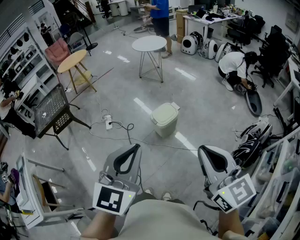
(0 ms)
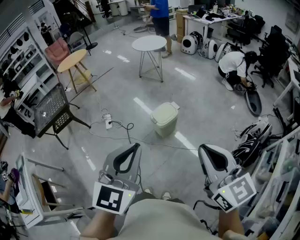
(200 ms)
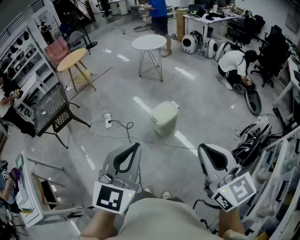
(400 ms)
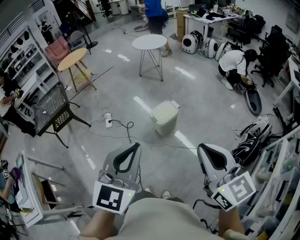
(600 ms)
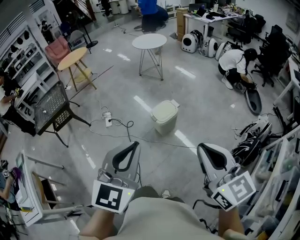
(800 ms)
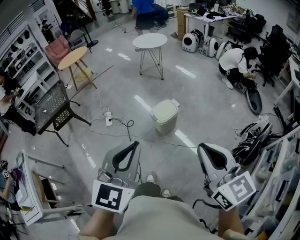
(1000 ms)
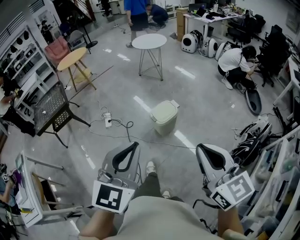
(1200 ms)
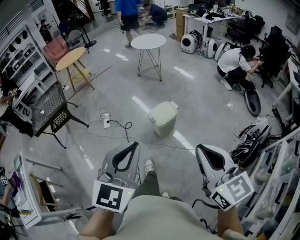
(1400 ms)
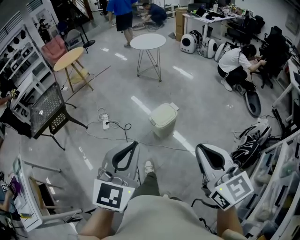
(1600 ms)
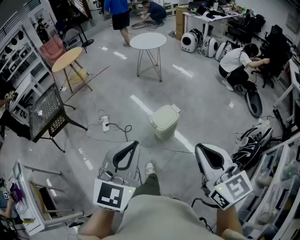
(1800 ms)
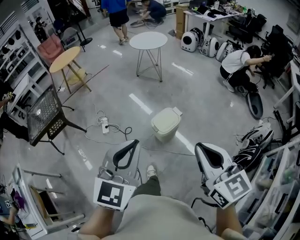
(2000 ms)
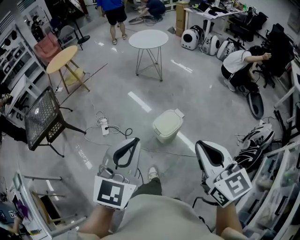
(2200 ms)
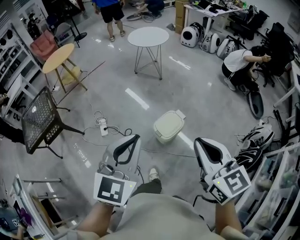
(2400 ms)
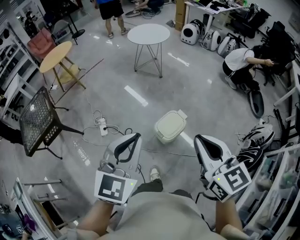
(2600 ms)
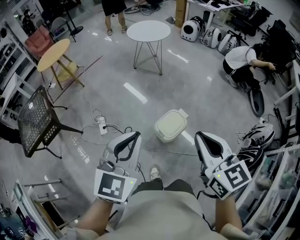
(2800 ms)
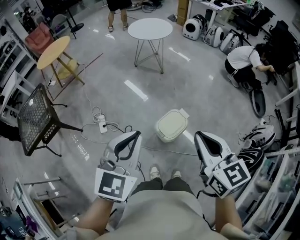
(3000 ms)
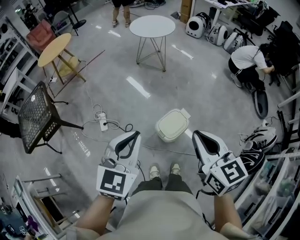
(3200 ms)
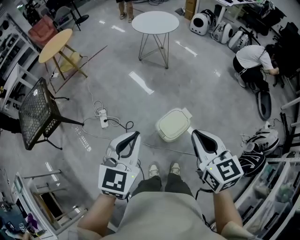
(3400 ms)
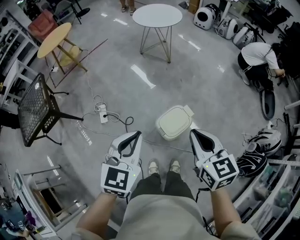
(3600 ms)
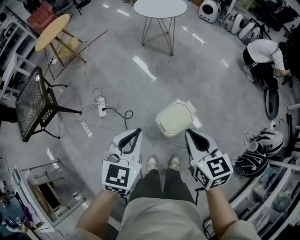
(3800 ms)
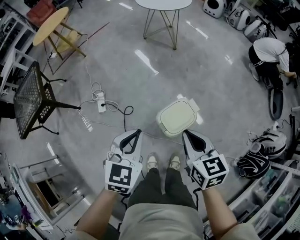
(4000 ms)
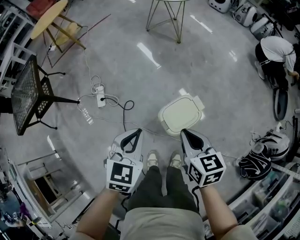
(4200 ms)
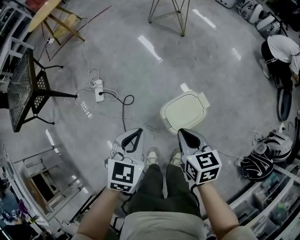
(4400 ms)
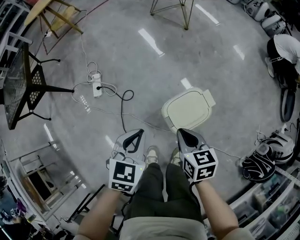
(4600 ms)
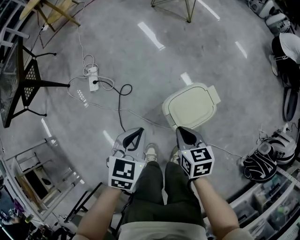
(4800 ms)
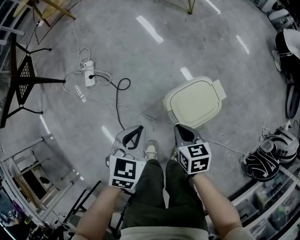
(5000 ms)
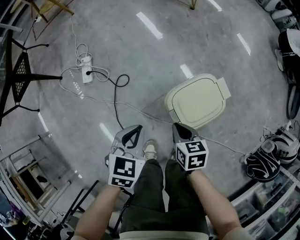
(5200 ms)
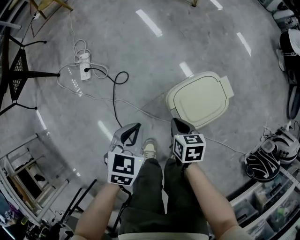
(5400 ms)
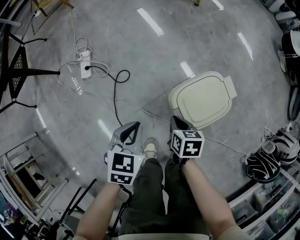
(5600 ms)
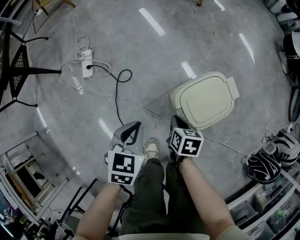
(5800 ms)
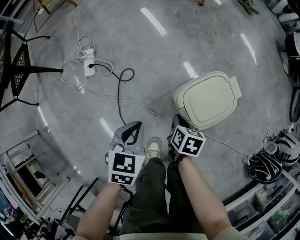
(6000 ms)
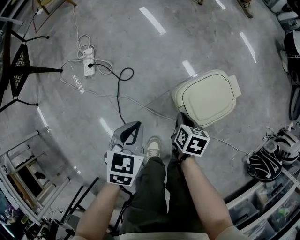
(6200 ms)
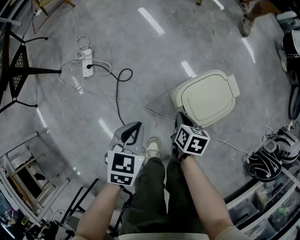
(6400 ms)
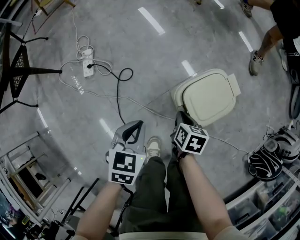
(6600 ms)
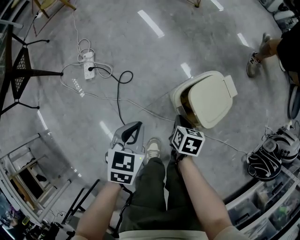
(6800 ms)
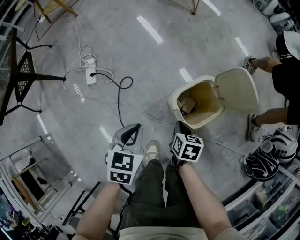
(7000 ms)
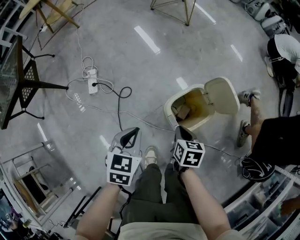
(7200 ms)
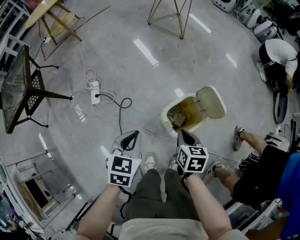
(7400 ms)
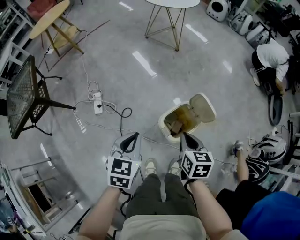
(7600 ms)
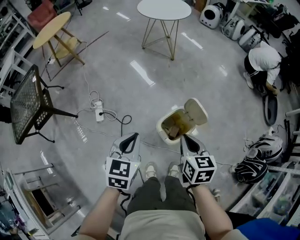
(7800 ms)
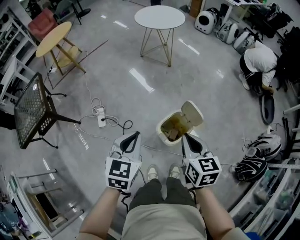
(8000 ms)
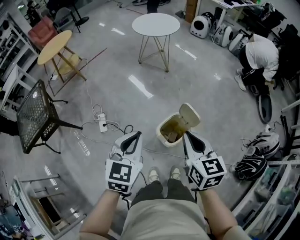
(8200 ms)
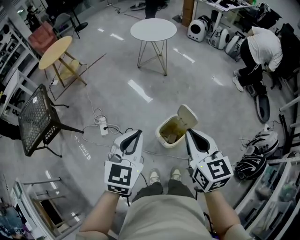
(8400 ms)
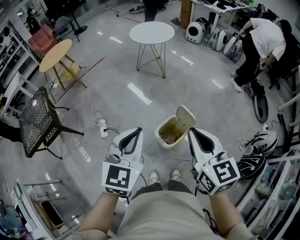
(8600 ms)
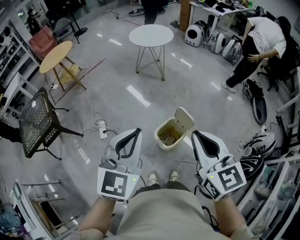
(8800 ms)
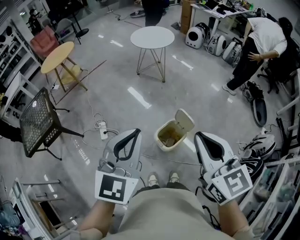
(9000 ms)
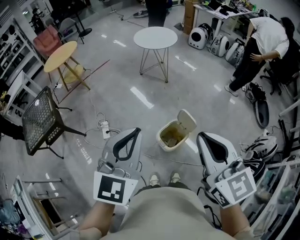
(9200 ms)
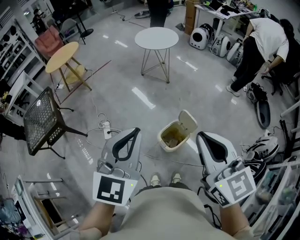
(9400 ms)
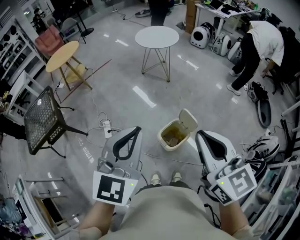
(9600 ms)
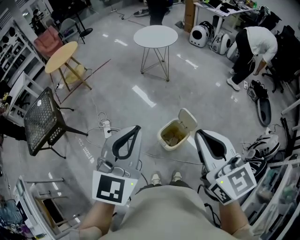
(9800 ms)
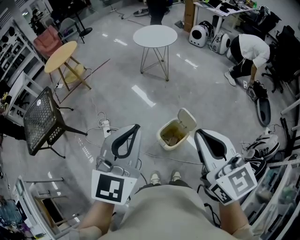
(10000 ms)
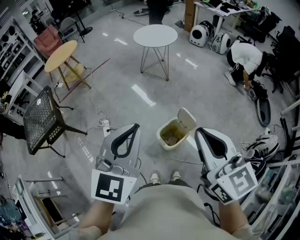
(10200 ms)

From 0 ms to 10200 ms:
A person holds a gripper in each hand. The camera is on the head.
From 0 ms to 1400 ms: There are only small adjustments of the grippers.
From 1400 ms to 3000 ms: Both grippers move forward, roughly 35 cm.
From 3000 ms to 4400 ms: Both grippers travel together downward, about 35 cm. The right gripper rotates approximately 30 degrees. Meanwhile the left gripper turns by approximately 20 degrees.
From 4400 ms to 5800 ms: The grippers both shift downward by some 30 cm. The right gripper turns by roughly 30 degrees.
From 5800 ms to 7200 ms: Both grippers travel together upward, about 10 cm.
From 7200 ms to 8800 ms: Both grippers travel together upward, roughly 60 cm. The left gripper points its fingers approximately 30 degrees further upward, while the right gripper tips its fingers upward by roughly 40 degrees.
From 8800 ms to 10200 ms: The right gripper is displaced upward by roughly 5 cm.

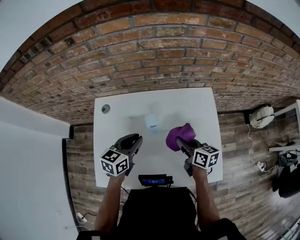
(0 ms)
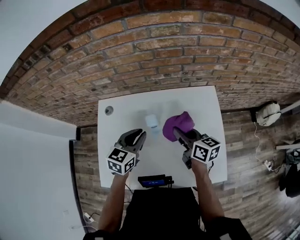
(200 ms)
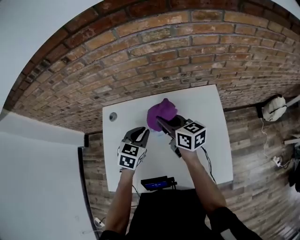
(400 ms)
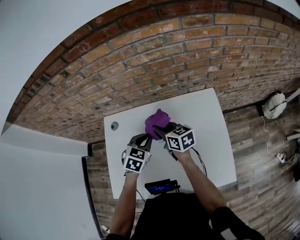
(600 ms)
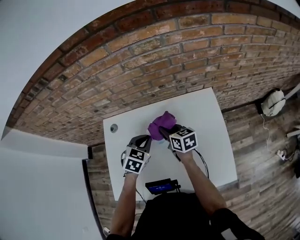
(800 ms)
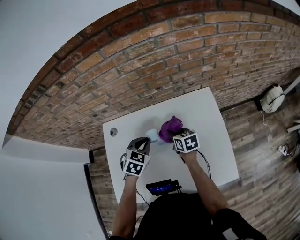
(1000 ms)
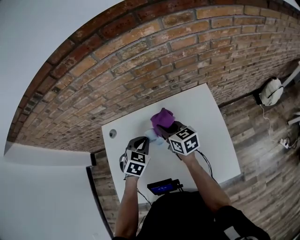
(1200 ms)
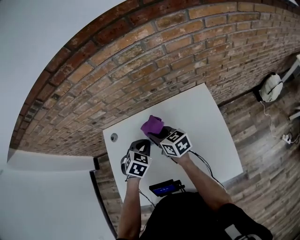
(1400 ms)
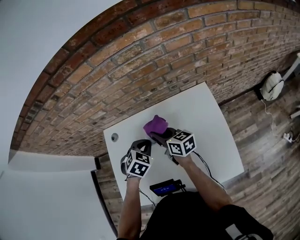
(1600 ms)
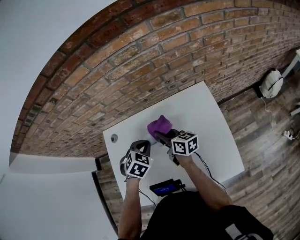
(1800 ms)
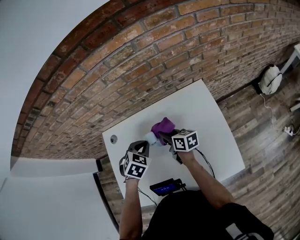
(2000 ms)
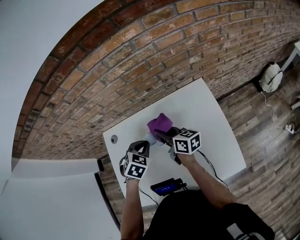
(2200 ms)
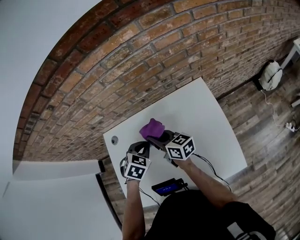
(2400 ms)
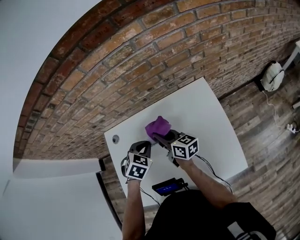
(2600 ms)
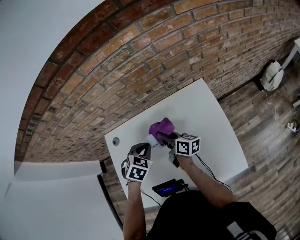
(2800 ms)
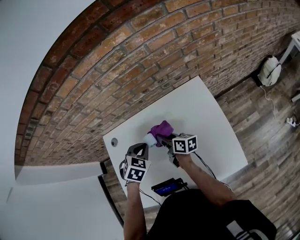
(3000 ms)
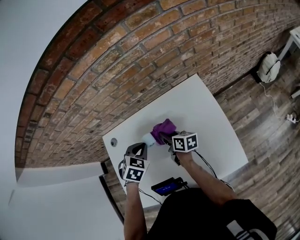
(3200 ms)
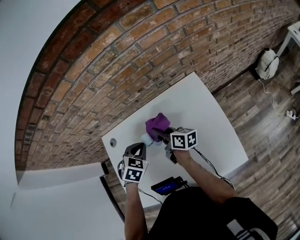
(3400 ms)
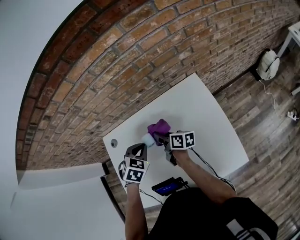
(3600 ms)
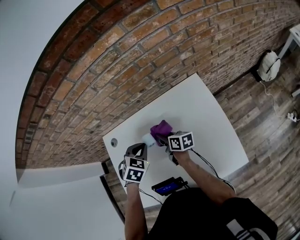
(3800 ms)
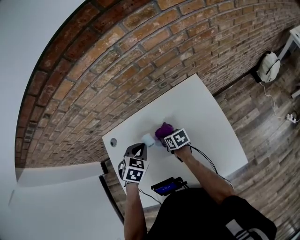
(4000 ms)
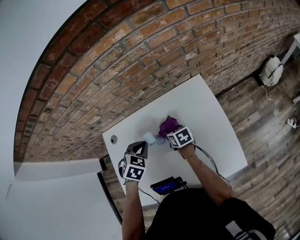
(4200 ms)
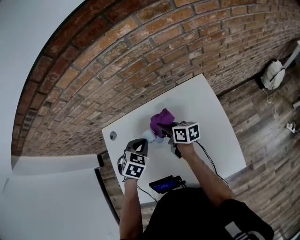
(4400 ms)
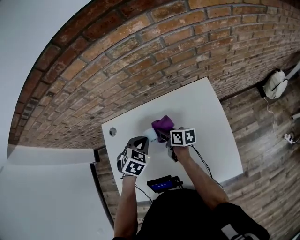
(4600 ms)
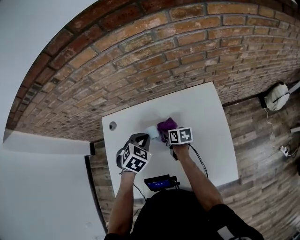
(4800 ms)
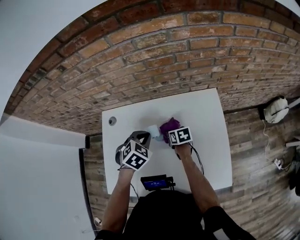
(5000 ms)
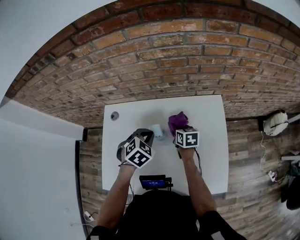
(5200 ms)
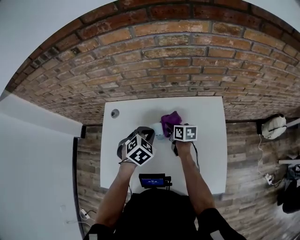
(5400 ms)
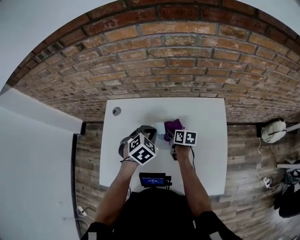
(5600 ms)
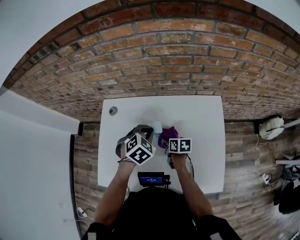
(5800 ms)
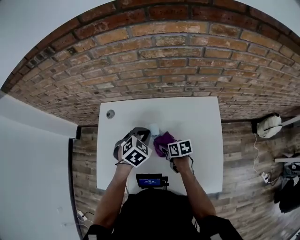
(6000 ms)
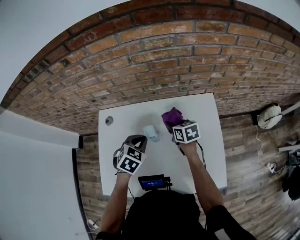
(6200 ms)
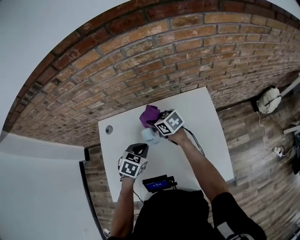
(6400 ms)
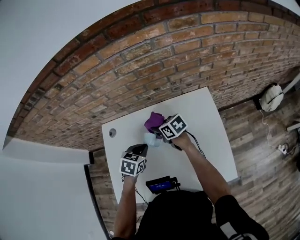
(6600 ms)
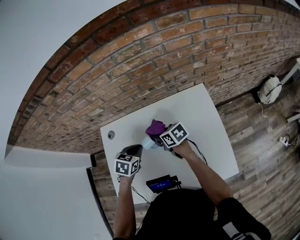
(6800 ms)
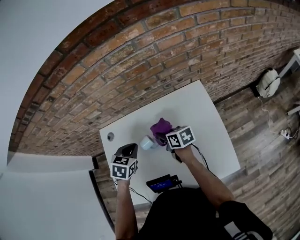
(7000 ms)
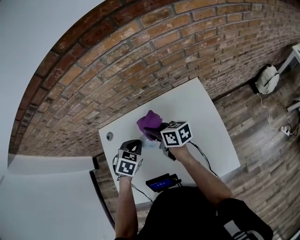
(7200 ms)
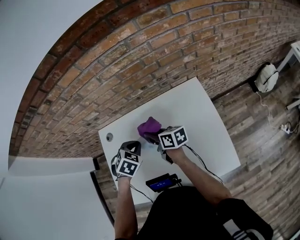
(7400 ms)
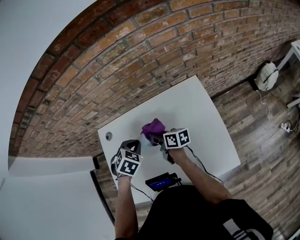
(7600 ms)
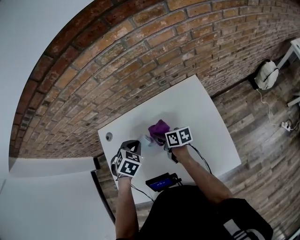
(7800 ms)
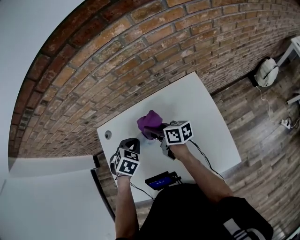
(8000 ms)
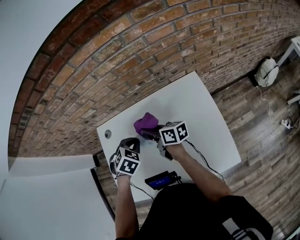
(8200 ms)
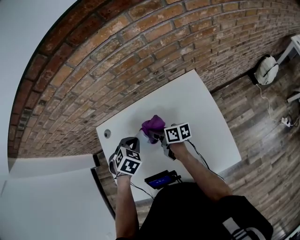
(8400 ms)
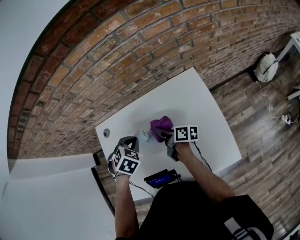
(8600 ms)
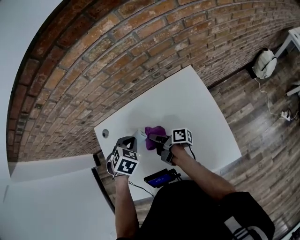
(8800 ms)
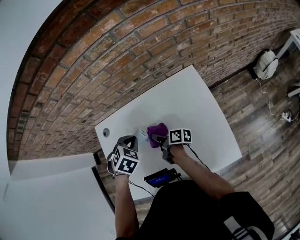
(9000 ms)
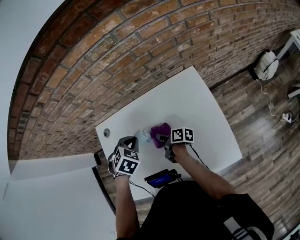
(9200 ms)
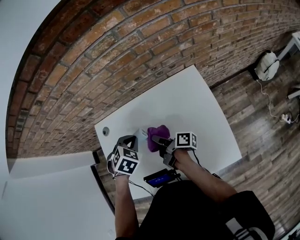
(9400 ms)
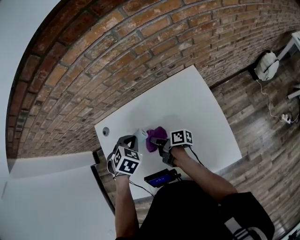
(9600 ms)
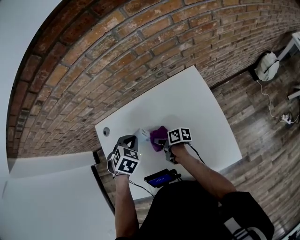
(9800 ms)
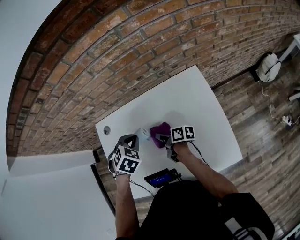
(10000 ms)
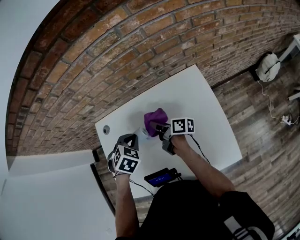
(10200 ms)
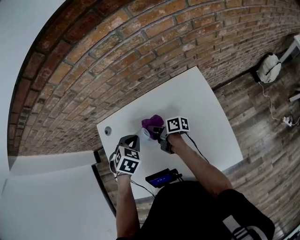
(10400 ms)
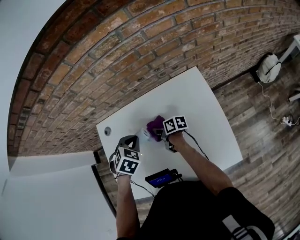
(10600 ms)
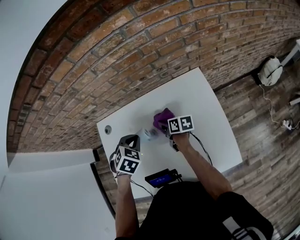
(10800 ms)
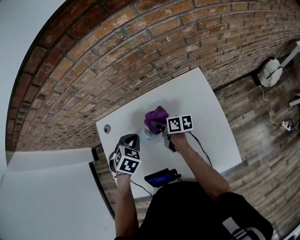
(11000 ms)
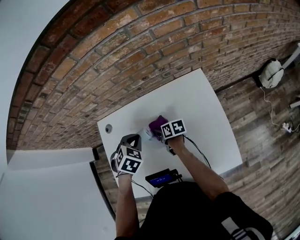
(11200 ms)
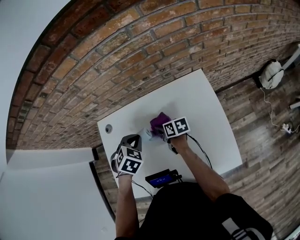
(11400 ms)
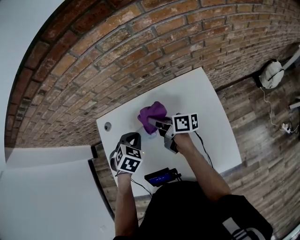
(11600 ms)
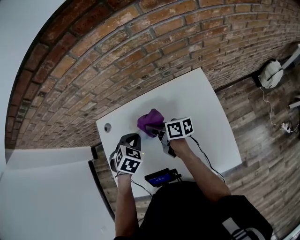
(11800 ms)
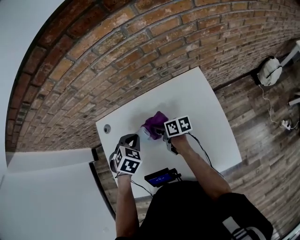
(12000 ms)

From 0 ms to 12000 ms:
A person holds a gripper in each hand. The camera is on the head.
From 0 ms to 1600 ms: The right gripper goes up and down, approximately 15 cm each way, reversing 2 times. Meanwhile the left gripper moves to the right, some 5 cm, and points its fingers about 30 degrees further downward.
From 1600 ms to 3000 ms: The right gripper goes up and down, approximately 10 cm each way, reversing 2 times, and rotates about 20 degrees.
From 3000 ms to 4400 ms: The right gripper moves up and down over some 10 cm, changing direction 2 times.
From 4400 ms to 6000 ms: The right gripper swings up and down, approximately 10 cm each way, with 2 reversals, and turns by some 40 degrees.
From 6000 ms to 7600 ms: The right gripper is displaced upward and forward by some 10 cm, and turns by some 30 degrees.
From 7600 ms to 9000 ms: The right gripper heads downward, covering roughly 5 cm, and changes its angle by some 30 degrees.
From 9000 ms to 10400 ms: The right gripper swings up and down, approximately 10 cm each way, with 2 reversals.
From 10400 ms to 12000 ms: The right gripper moves up and down over approximately 15 cm, changing direction 4 times, and swivels about 30 degrees.

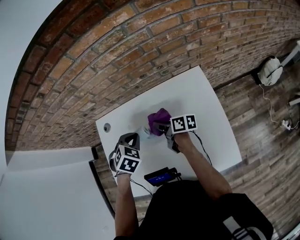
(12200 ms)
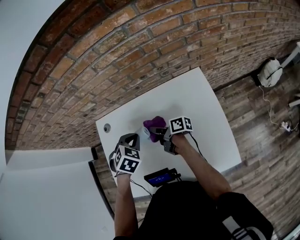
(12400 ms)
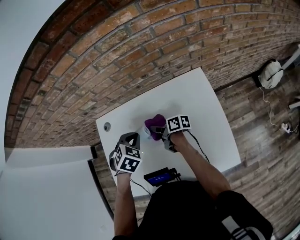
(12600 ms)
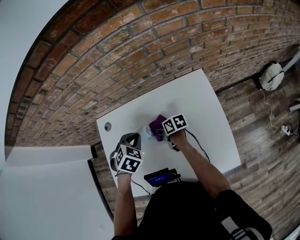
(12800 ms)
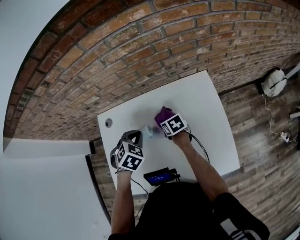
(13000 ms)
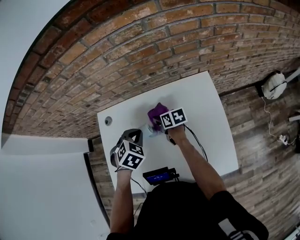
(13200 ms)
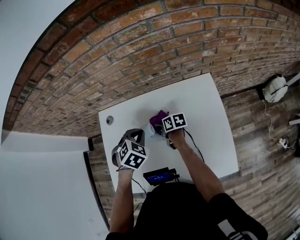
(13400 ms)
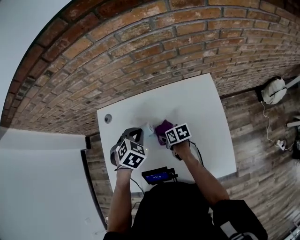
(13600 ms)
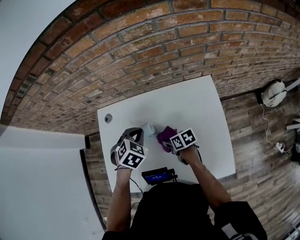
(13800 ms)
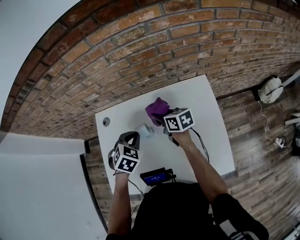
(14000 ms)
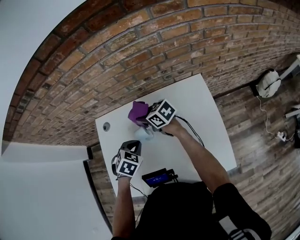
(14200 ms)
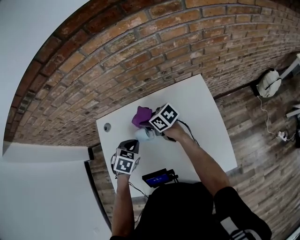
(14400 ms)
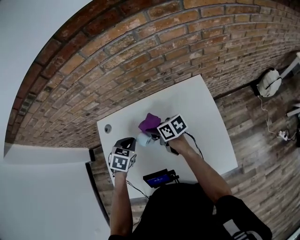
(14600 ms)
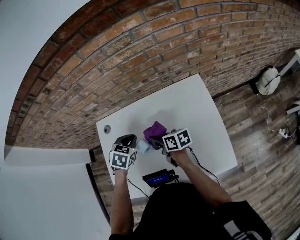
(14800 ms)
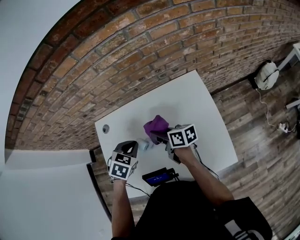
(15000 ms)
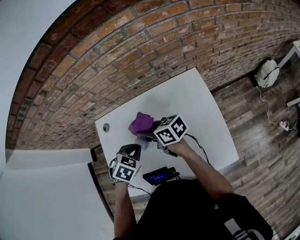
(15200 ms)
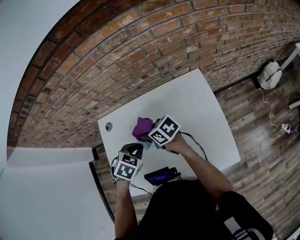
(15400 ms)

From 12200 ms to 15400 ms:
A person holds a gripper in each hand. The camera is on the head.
From 12200 ms to 13800 ms: The right gripper moves backward and downward, some 10 cm, and changes its angle by approximately 40 degrees.
From 13800 ms to 15400 ms: The left gripper travels backward by some 5 cm; the right gripper goes up and down, approximately 20 cm each way, reversing 2 times, and swivels about 20 degrees.
